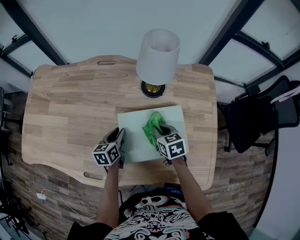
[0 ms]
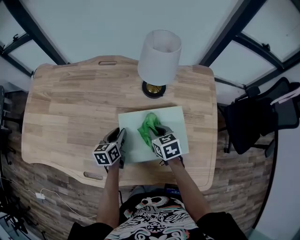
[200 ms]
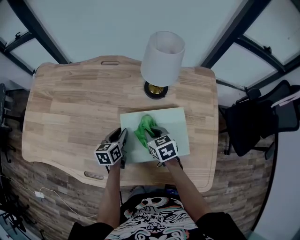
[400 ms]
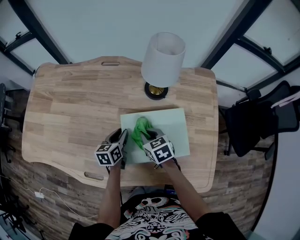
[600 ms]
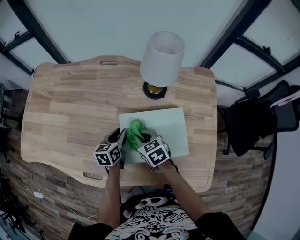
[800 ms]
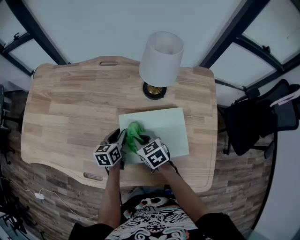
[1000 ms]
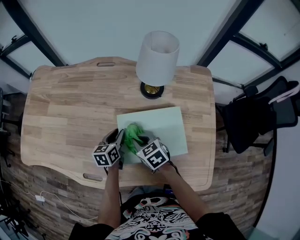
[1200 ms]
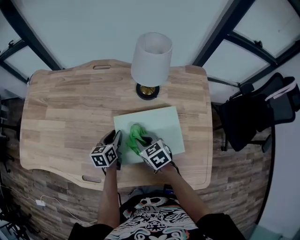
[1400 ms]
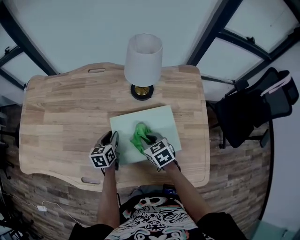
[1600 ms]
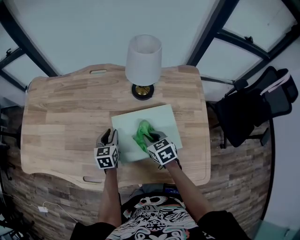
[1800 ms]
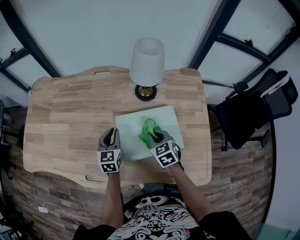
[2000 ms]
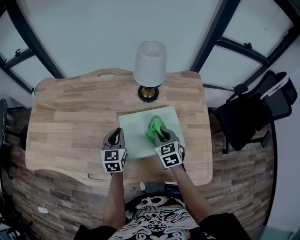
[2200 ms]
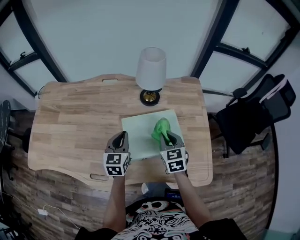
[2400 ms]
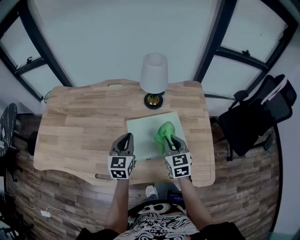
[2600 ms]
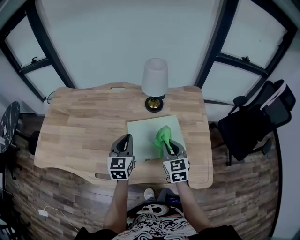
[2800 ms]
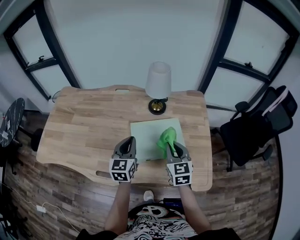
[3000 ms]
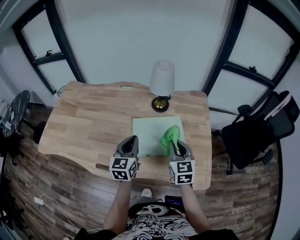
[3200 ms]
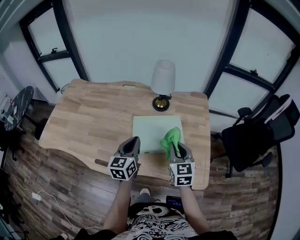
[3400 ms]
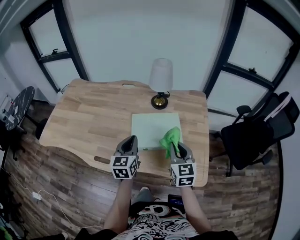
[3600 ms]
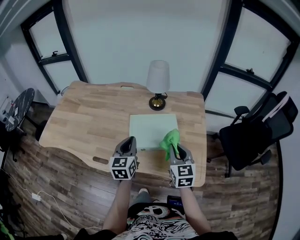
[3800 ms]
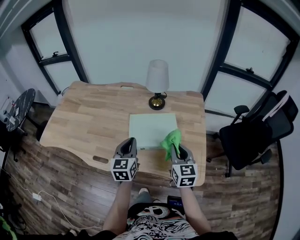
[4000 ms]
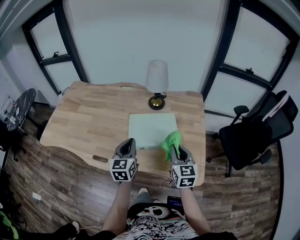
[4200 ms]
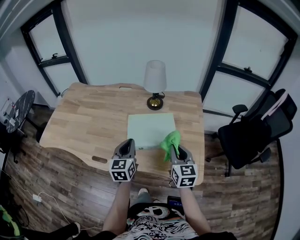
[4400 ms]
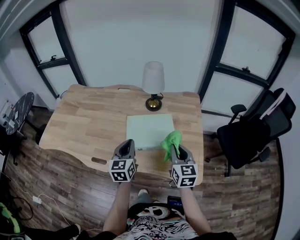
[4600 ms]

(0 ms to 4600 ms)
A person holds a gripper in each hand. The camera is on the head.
1600 ms - 3000 ms: The two grippers go some 20 cm upward and backward. The left gripper turns by some 30 degrees, and closes, while the right gripper swivels approximately 30 degrees.
3000 ms - 4600 ms: The right gripper goes about 10 cm backward and to the right; the left gripper heads backward, covering roughly 10 cm.

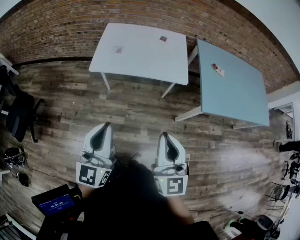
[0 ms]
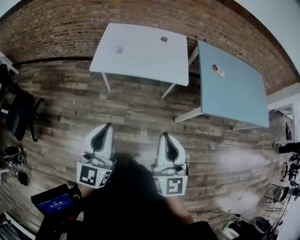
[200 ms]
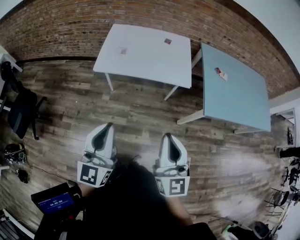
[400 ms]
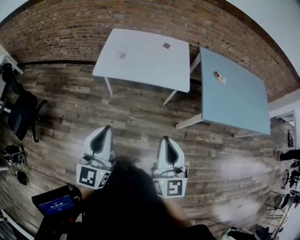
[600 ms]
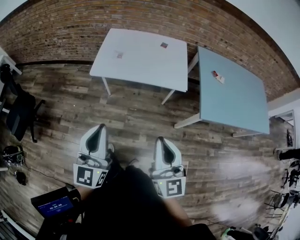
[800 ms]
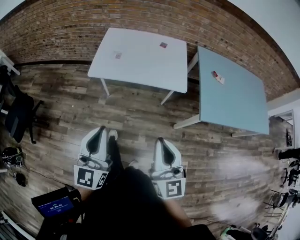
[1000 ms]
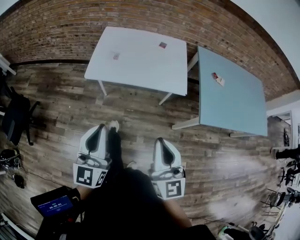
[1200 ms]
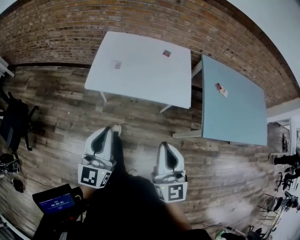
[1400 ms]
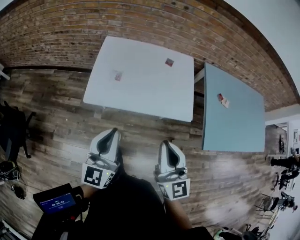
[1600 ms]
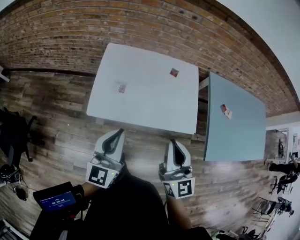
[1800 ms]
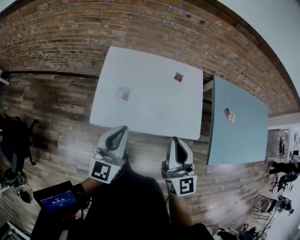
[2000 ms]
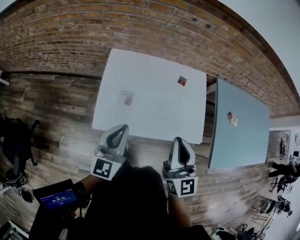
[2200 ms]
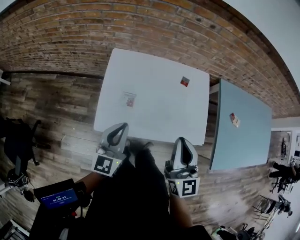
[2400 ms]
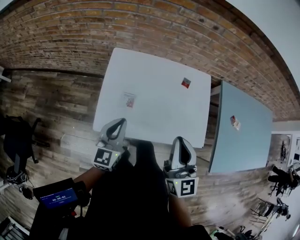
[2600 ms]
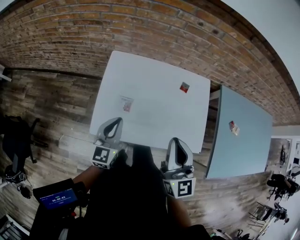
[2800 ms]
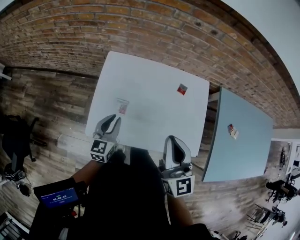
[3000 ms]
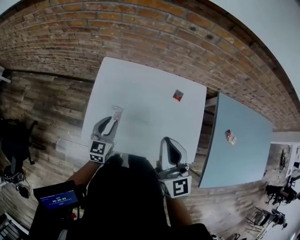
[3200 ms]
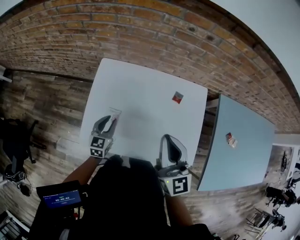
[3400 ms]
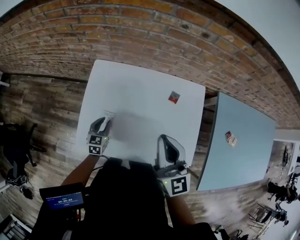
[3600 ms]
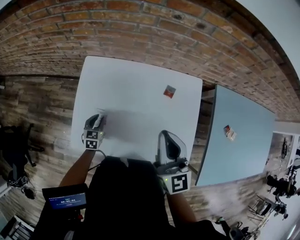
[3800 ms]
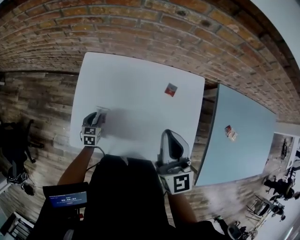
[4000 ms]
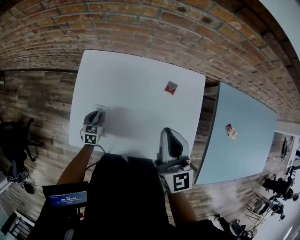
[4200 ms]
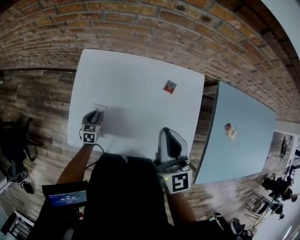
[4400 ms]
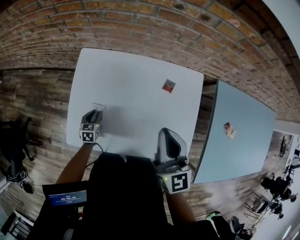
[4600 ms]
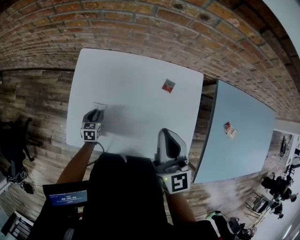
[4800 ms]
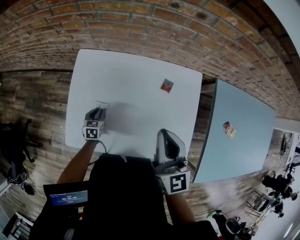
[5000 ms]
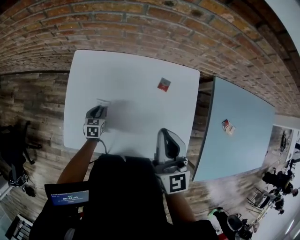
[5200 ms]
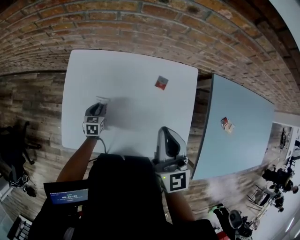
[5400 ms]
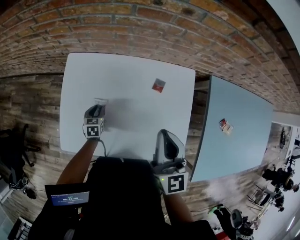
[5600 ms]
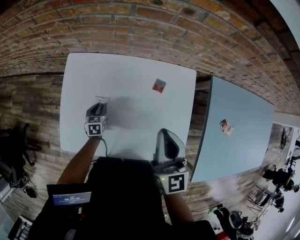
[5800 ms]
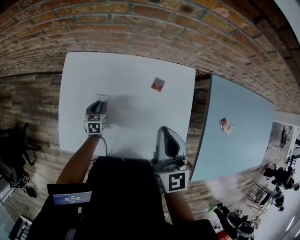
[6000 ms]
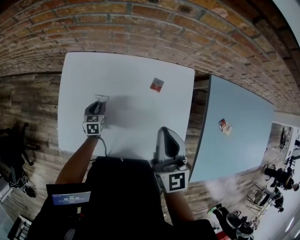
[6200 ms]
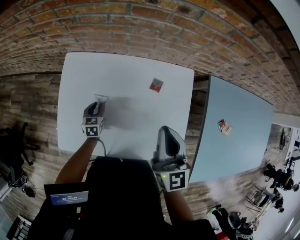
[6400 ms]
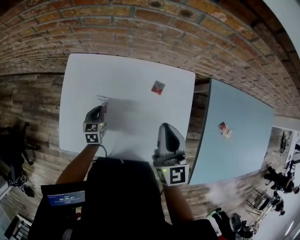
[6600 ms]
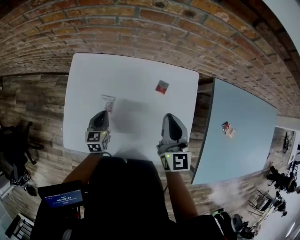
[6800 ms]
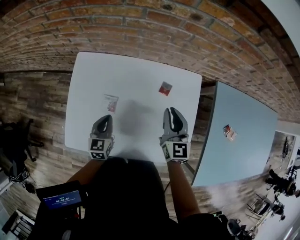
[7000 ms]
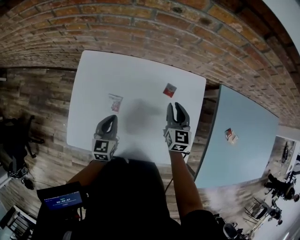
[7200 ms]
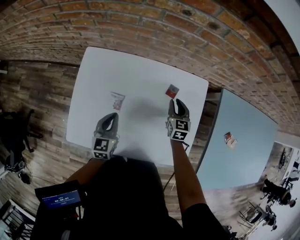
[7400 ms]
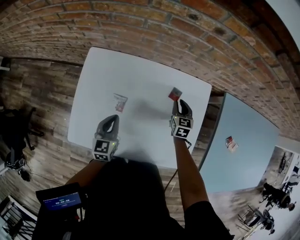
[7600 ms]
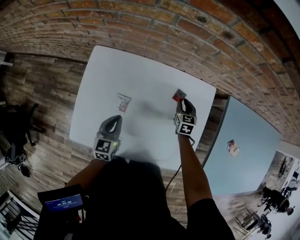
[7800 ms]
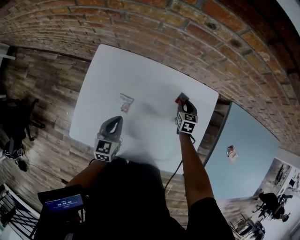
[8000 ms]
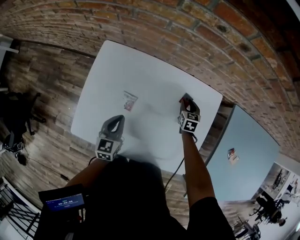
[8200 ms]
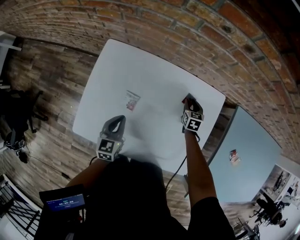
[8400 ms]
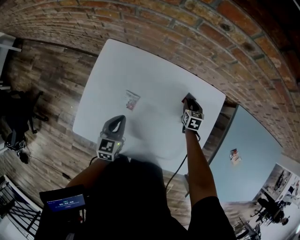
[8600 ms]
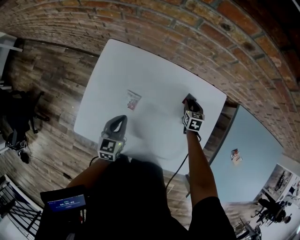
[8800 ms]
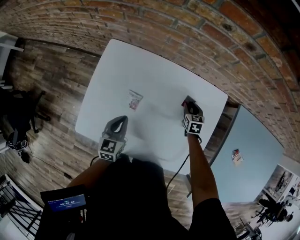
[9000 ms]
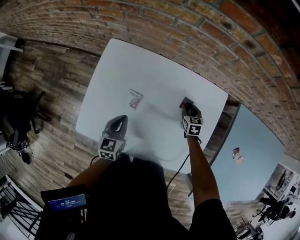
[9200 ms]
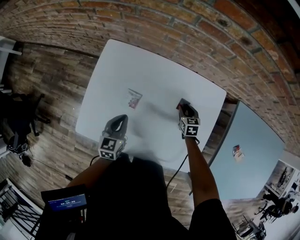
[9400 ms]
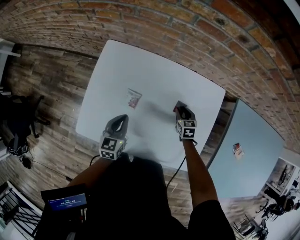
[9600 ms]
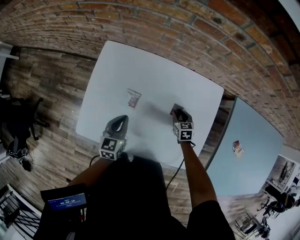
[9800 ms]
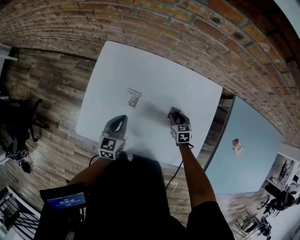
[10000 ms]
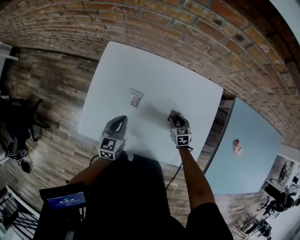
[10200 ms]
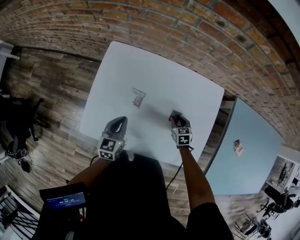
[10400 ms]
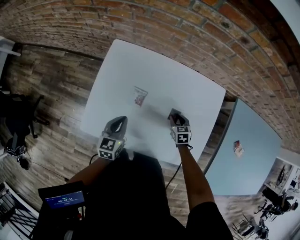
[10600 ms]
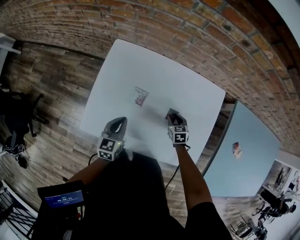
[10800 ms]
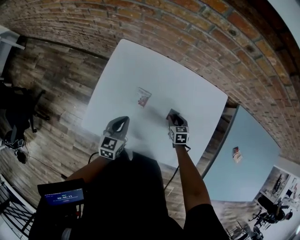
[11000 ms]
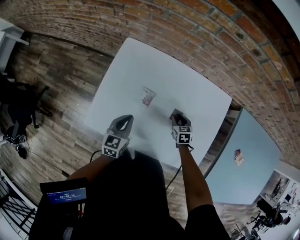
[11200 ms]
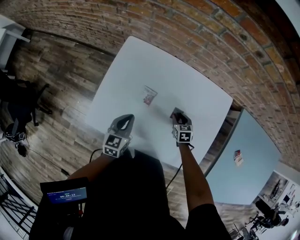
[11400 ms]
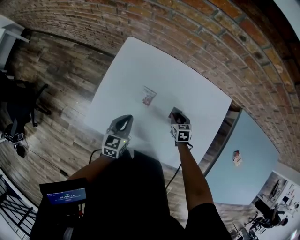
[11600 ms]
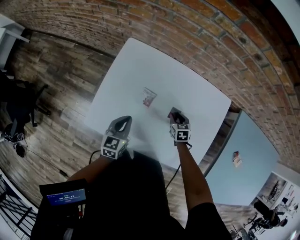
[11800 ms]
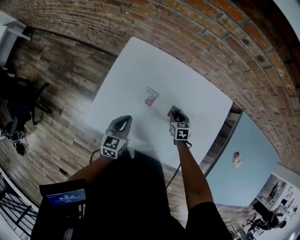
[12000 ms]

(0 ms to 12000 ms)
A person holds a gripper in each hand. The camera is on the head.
0 ms - 1600 ms: Both grippers move forward, some 25 cm.
1600 ms - 3000 ms: The right gripper heads forward, covering approximately 30 cm; the left gripper shifts approximately 35 cm forward and downward, and swivels some 20 degrees.
3000 ms - 4400 ms: The left gripper shifts about 25 cm downward, and tips its fingers downward by about 30 degrees. The right gripper travels forward and to the right by approximately 15 cm.
4400 ms - 6000 ms: The left gripper goes roughly 10 cm to the right and forward, while the right gripper goes approximately 5 cm to the right.
6000 ms - 7600 ms: The right gripper heads downward and forward, covering some 30 cm, points its fingers approximately 30 degrees further downward, and opens its fingers; the left gripper shifts approximately 15 cm upward, turns by approximately 20 degrees, and closes up.
7600 ms - 9000 ms: The right gripper goes some 10 cm downward.
9000 ms - 10400 ms: The right gripper shifts some 15 cm backward and to the left.
10400 ms - 12000 ms: The right gripper is displaced to the left by approximately 5 cm.

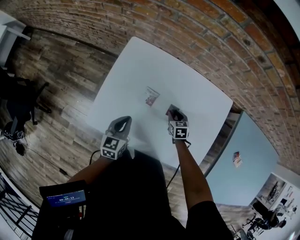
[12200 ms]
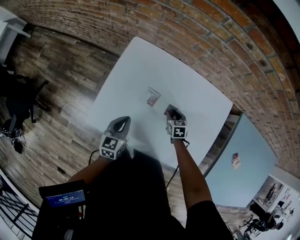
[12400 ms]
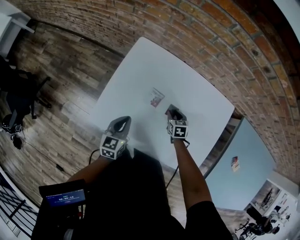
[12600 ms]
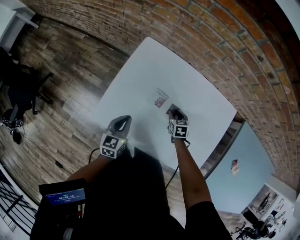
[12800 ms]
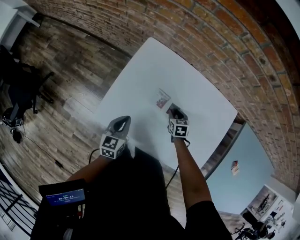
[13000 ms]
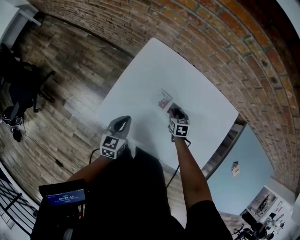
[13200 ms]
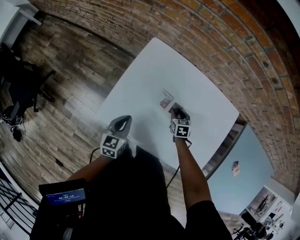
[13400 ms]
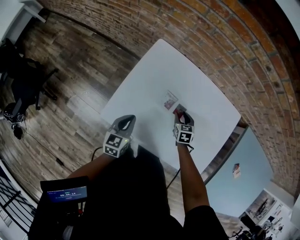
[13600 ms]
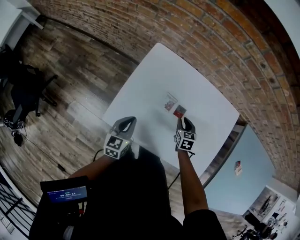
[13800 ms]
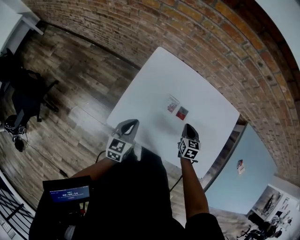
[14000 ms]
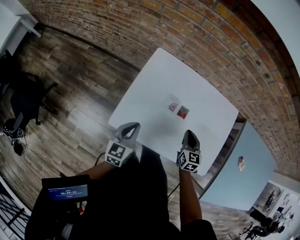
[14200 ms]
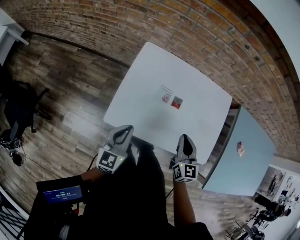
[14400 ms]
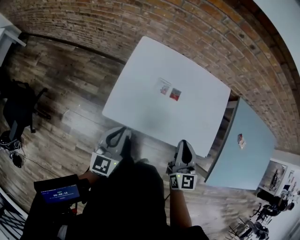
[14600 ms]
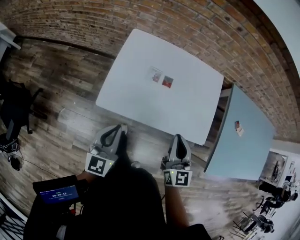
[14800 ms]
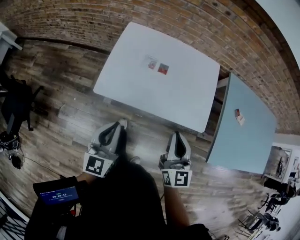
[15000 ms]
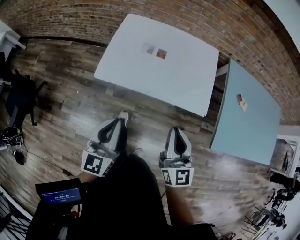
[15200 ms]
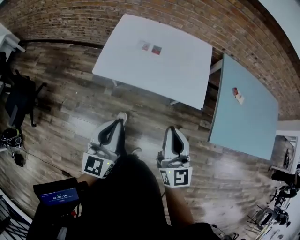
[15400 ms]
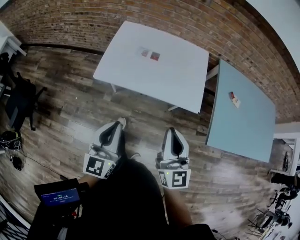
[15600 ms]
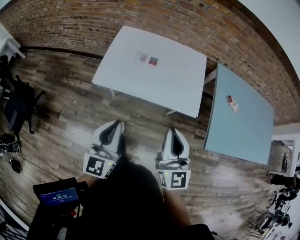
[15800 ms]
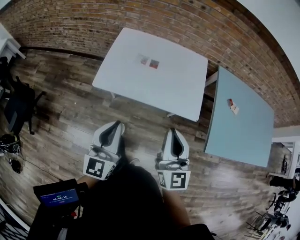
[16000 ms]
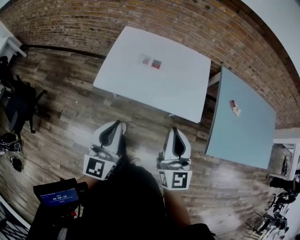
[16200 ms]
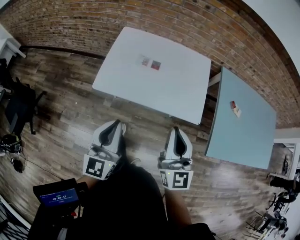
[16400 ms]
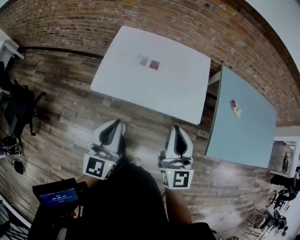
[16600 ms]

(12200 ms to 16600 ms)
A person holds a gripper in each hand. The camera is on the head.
12200 ms - 13600 ms: Both grippers travel together to the left, about 5 cm.
13600 ms - 15200 ms: Both grippers travel together backward and upward, approximately 40 cm. The left gripper rotates about 30 degrees; the right gripper tilts its fingers some 50 degrees upward, and closes.
15200 ms - 16600 ms: The left gripper moves roughly 5 cm backward and comes back, while the right gripper moves upward, some 5 cm, and travels backward and back again, roughly 5 cm each way.

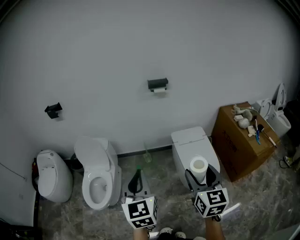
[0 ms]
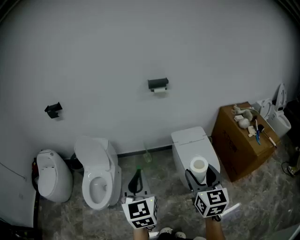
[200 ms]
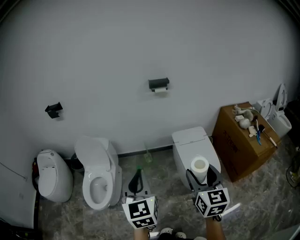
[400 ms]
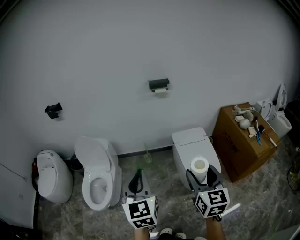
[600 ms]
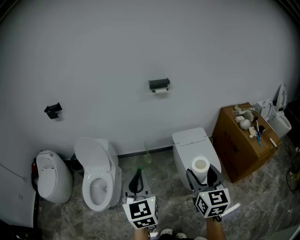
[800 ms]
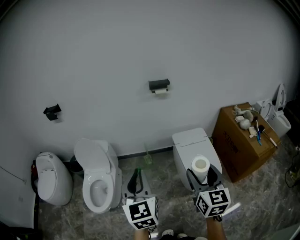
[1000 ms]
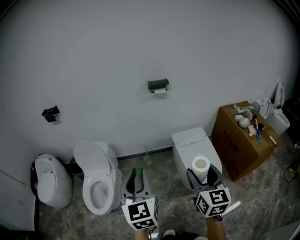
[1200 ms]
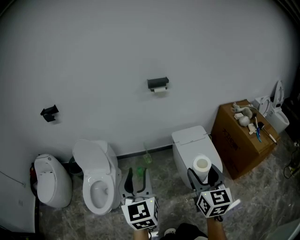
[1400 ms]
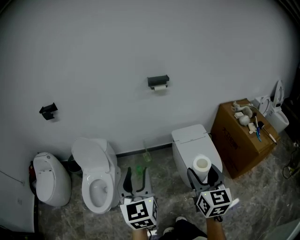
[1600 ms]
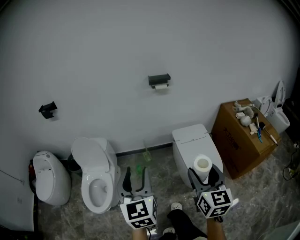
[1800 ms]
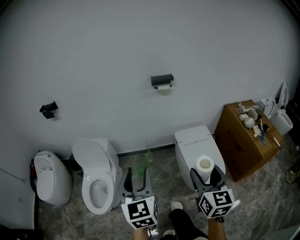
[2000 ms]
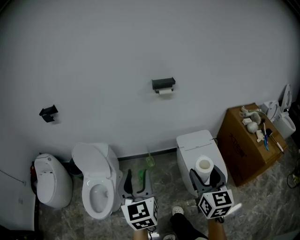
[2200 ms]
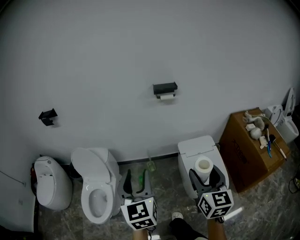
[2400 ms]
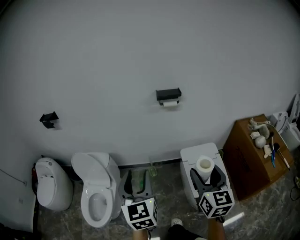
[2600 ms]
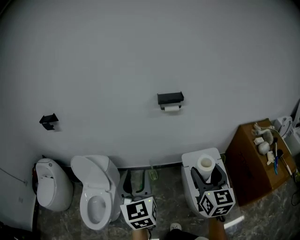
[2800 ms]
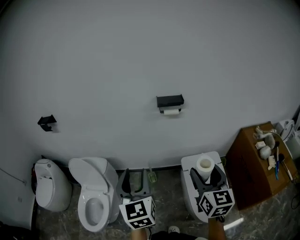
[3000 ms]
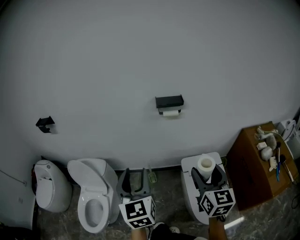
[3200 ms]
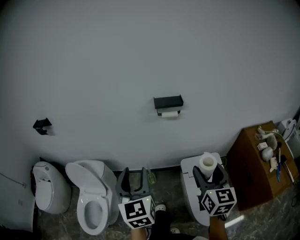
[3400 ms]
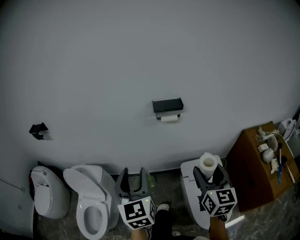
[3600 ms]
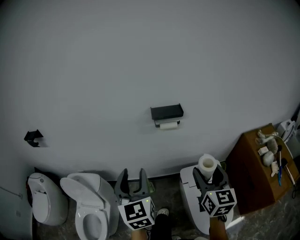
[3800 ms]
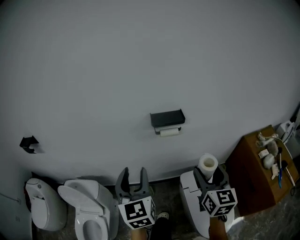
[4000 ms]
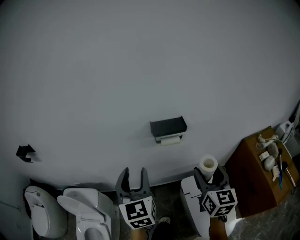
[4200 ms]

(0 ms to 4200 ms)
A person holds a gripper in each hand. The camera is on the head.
0 ms - 1400 ms: The left gripper opens its fingers.
1400 ms - 2800 ms: Both grippers travel together forward, approximately 25 cm.
2800 ms - 4200 ms: Both grippers move forward, approximately 30 cm.
